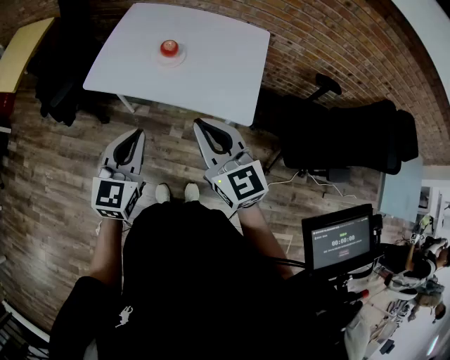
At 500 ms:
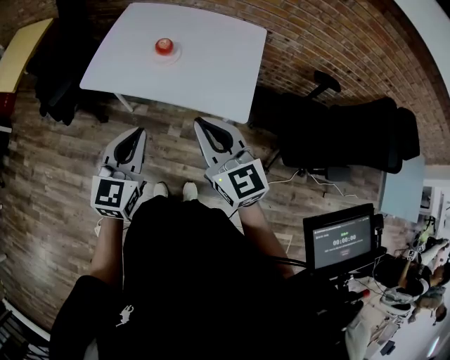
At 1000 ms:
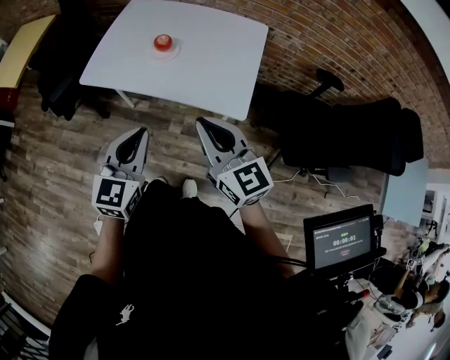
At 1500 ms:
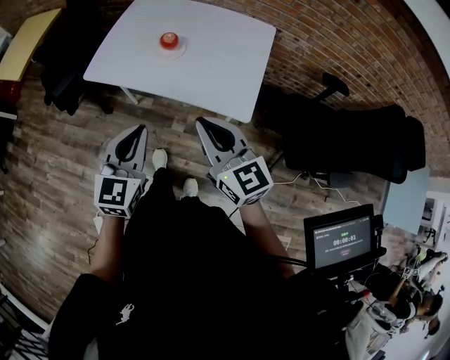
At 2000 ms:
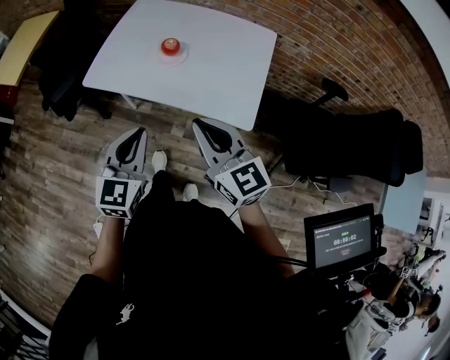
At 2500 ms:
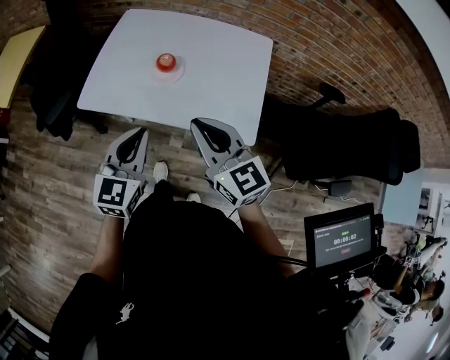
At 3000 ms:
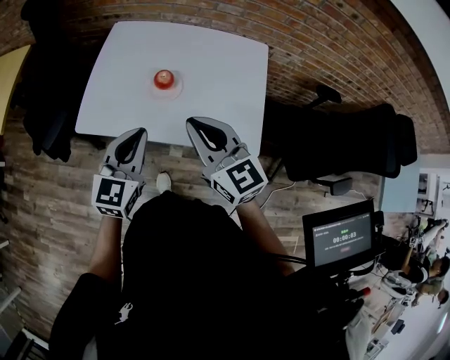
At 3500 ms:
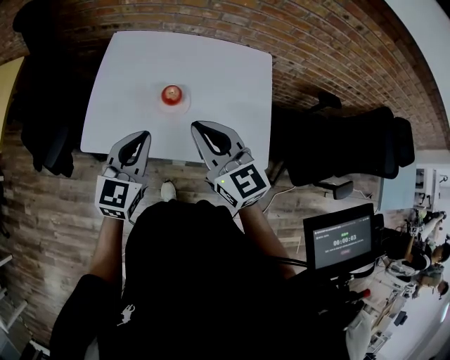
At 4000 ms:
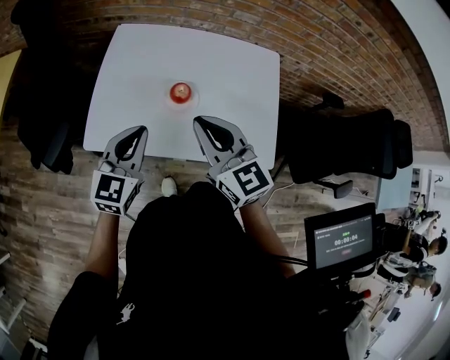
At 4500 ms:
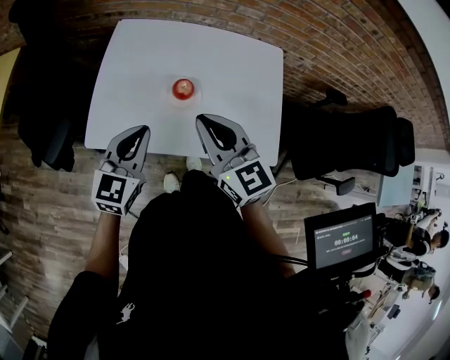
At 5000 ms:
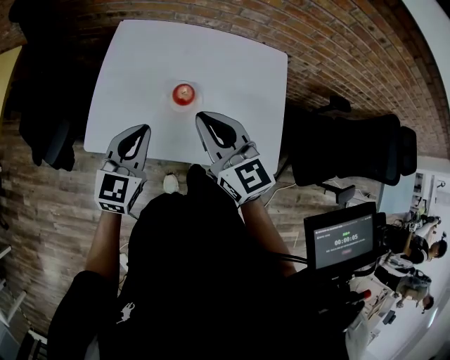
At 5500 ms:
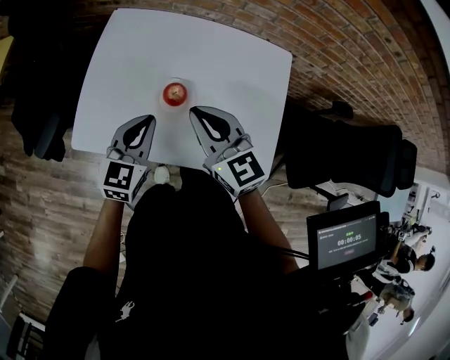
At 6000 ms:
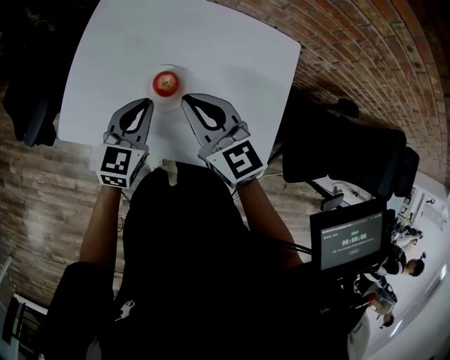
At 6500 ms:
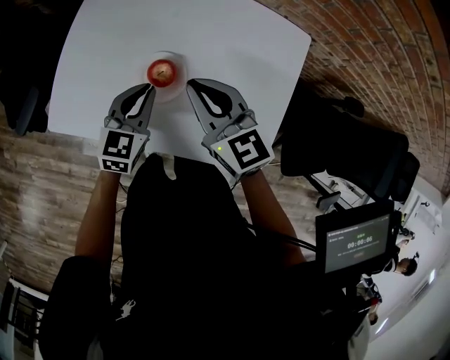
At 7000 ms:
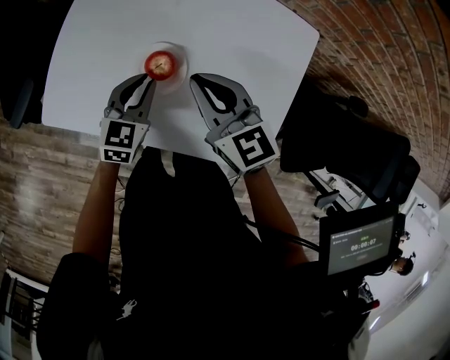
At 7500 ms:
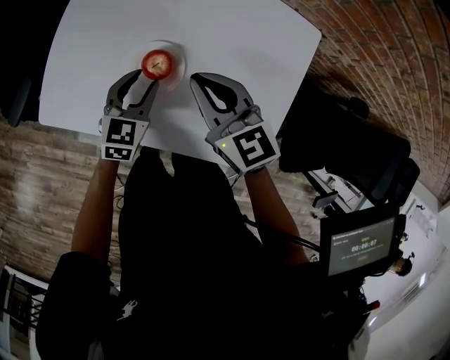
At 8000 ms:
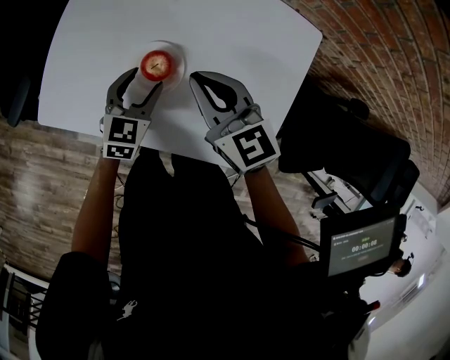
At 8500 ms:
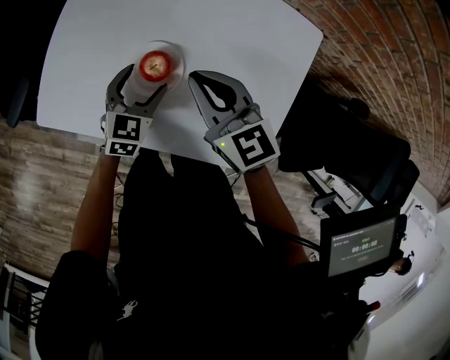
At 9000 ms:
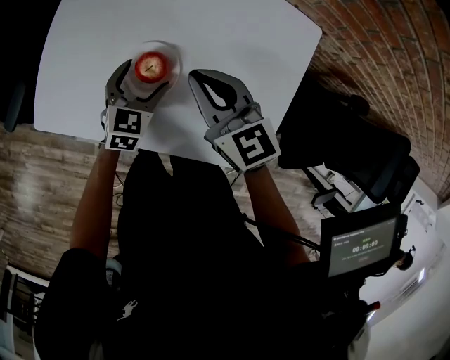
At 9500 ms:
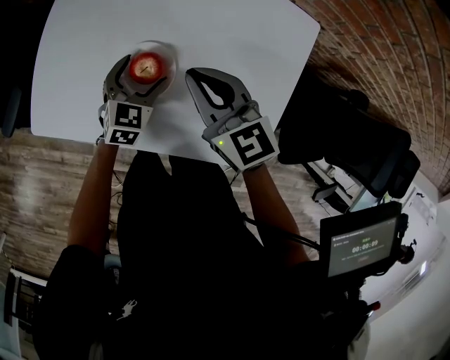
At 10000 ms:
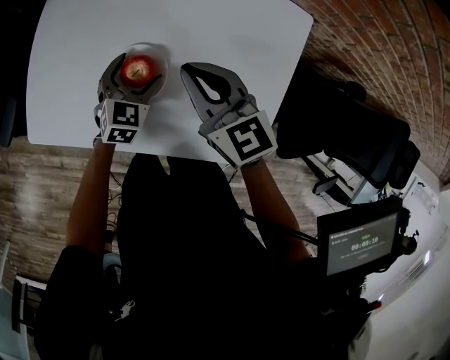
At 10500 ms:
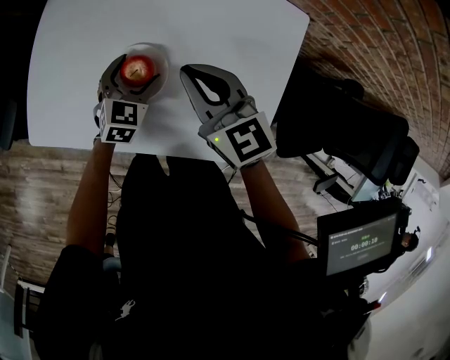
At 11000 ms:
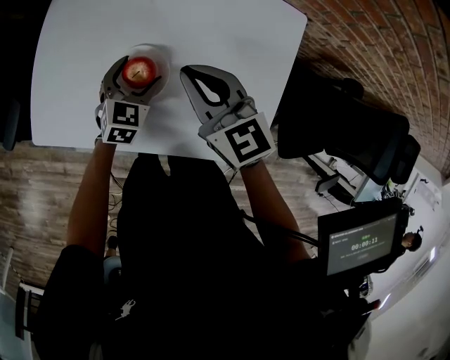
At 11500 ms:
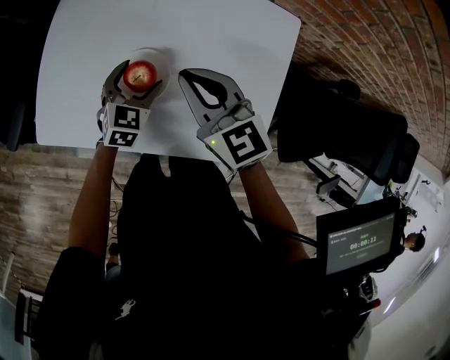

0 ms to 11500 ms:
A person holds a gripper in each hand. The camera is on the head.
0 ms to 2000 ms: The grippers stay close to where they were, moving slightly.
2000 ms to 4000 ms: The grippers both shift forward and to the left by approximately 25 cm.
4000 ms to 6000 ms: The right gripper shifts some 15 cm forward and downward, while the left gripper travels forward, downward and to the right by about 15 cm.
6000 ms to 7500 ms: The right gripper goes about 5 cm downward. The left gripper is displaced downward by about 10 cm.
7500 ms to 9500 ms: The left gripper opens.
9500 ms to 11500 ms: There are only small adjustments of the grippers.

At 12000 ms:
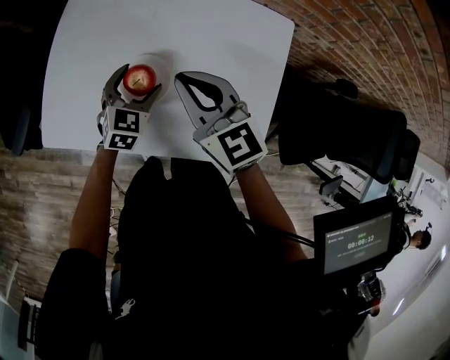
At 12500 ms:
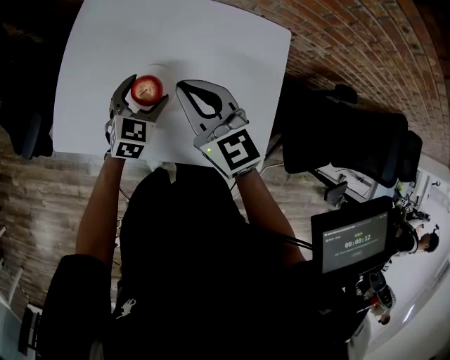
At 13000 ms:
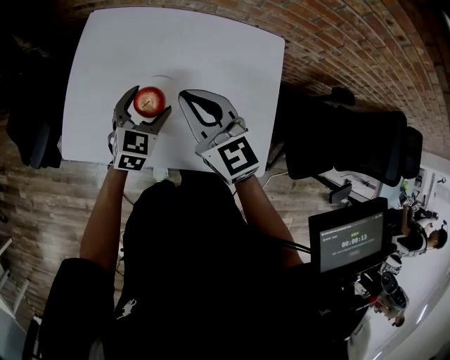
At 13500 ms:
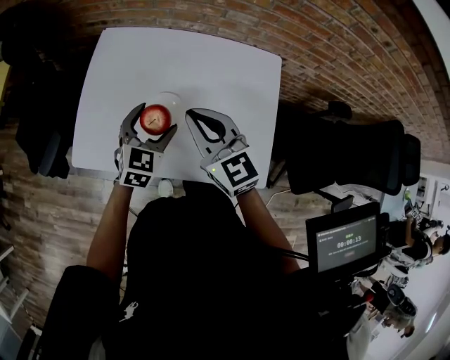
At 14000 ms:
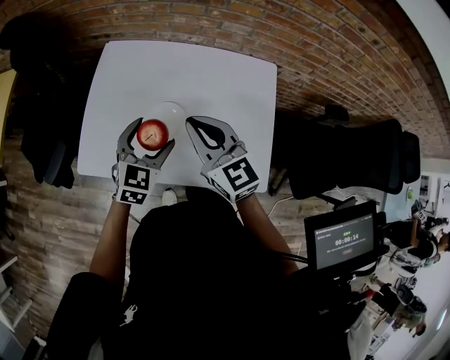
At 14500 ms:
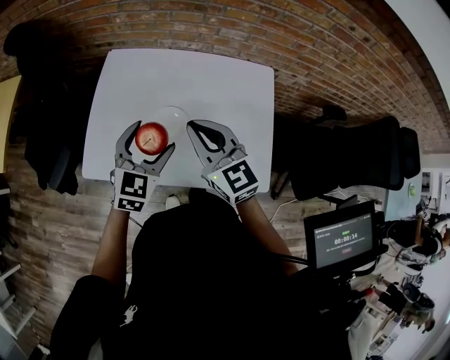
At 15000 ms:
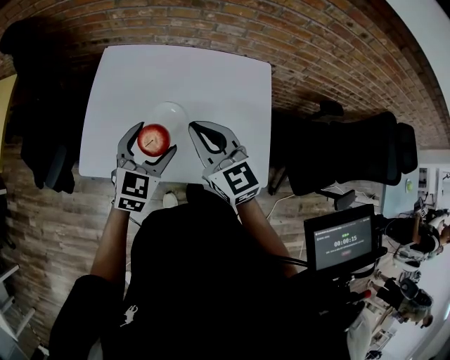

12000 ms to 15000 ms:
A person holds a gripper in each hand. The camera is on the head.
12000 ms to 13500 ms: The left gripper moves upward, about 10 cm; the right gripper ends up approximately 5 cm from where it was.
13500 ms to 15000 ms: The left gripper heads upward and backward, covering approximately 10 cm.

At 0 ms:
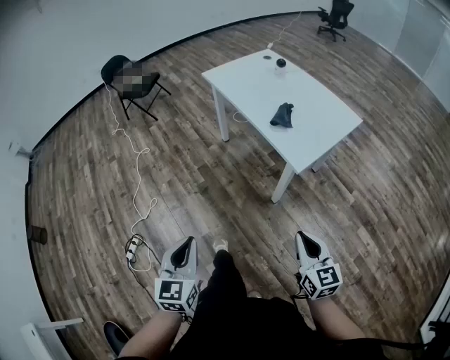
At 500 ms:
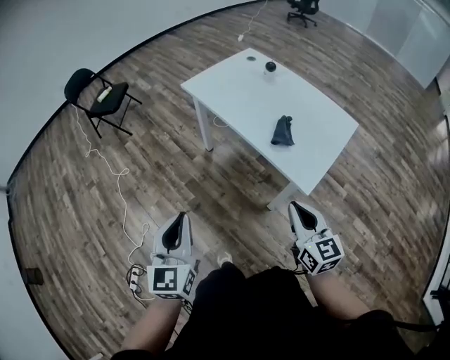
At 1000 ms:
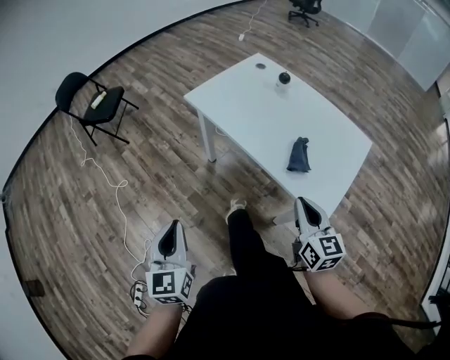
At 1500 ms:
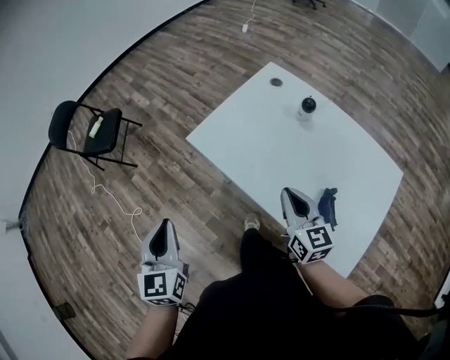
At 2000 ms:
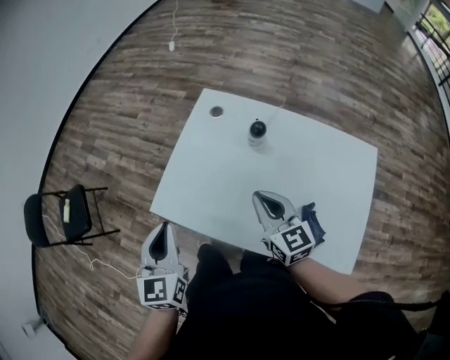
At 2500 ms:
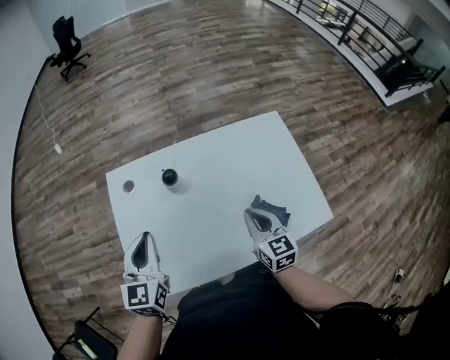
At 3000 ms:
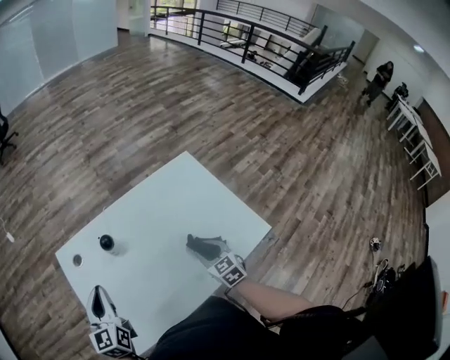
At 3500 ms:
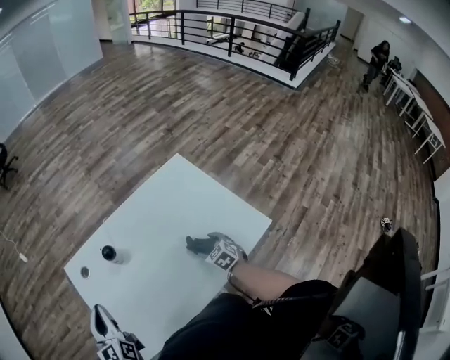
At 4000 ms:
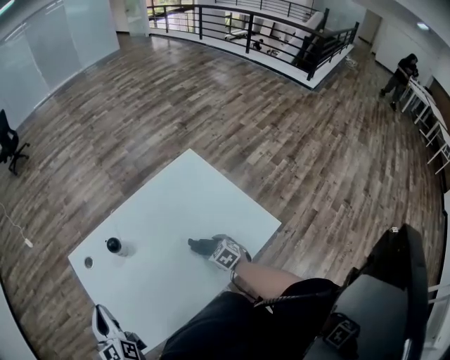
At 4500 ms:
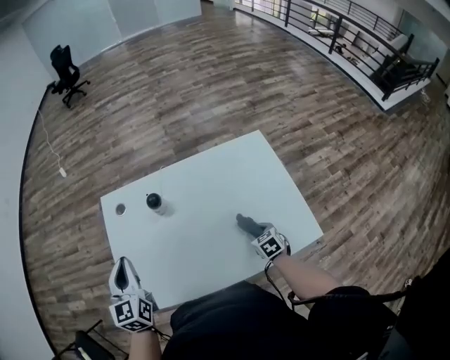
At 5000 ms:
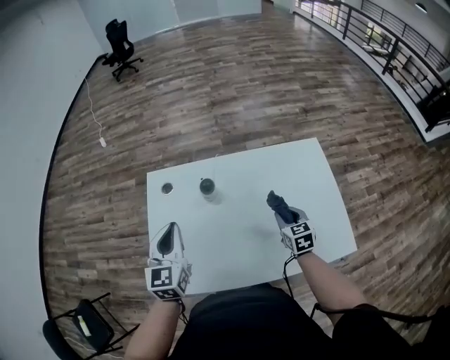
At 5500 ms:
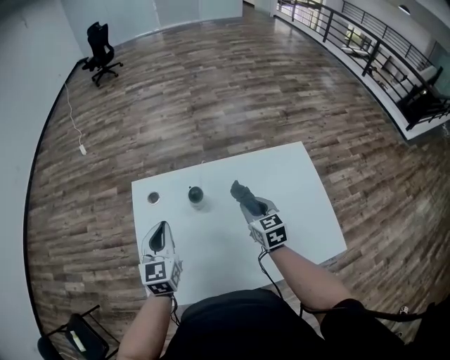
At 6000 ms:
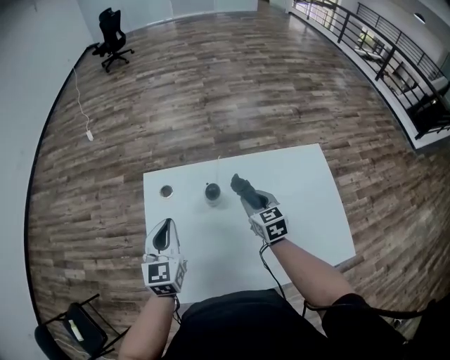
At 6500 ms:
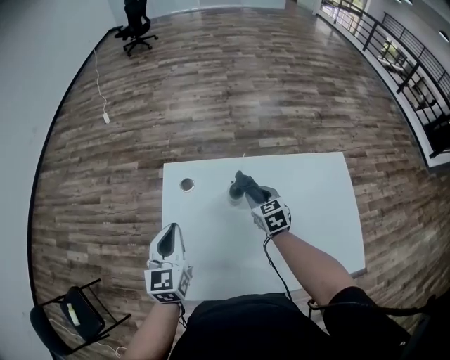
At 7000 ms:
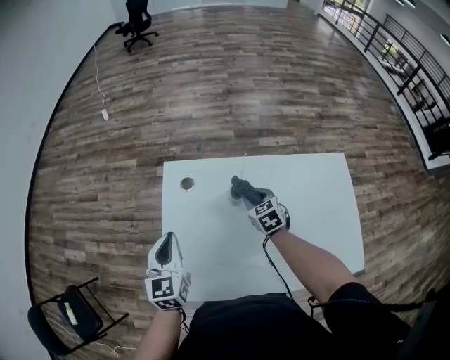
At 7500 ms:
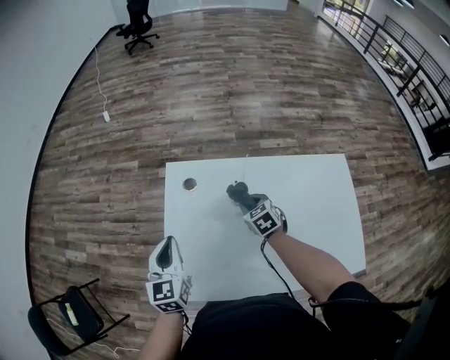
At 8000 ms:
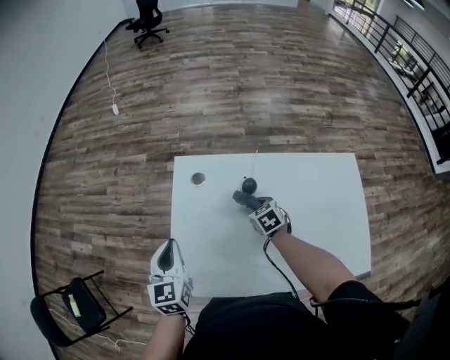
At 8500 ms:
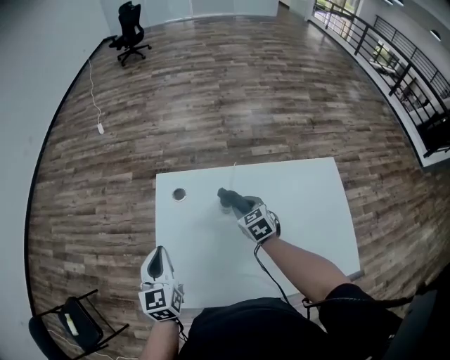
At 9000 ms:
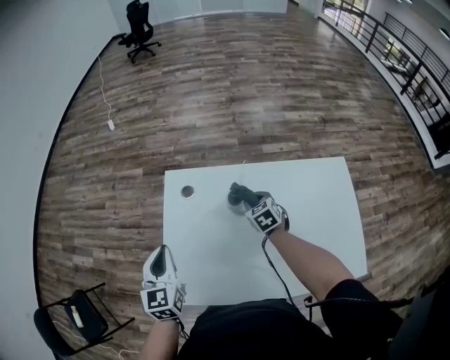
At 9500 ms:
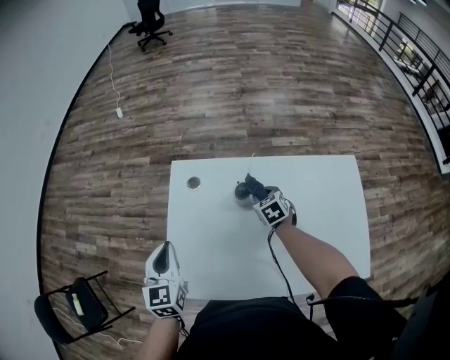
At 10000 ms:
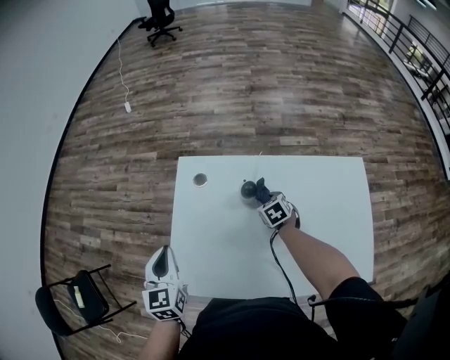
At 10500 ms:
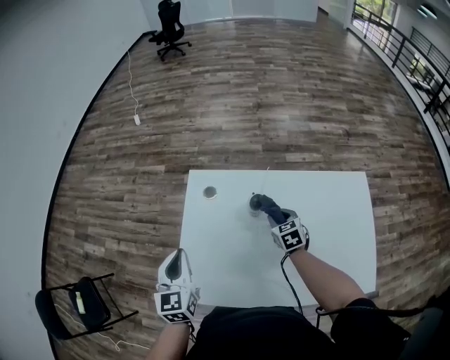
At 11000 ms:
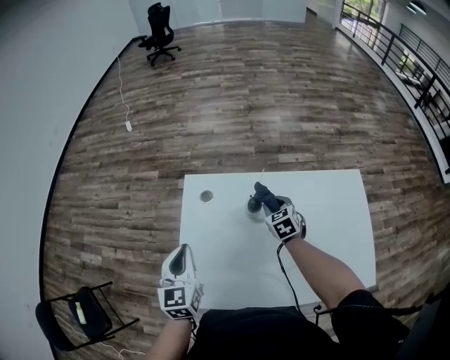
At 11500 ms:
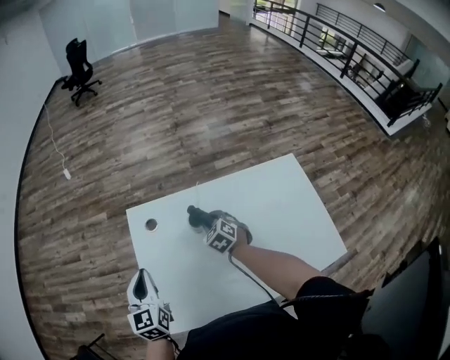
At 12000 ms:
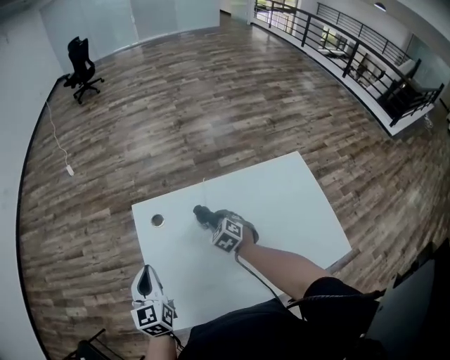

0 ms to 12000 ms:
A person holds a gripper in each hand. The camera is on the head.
0 ms to 2000 ms: Both grippers are carried forward, approximately 70 cm. The right gripper changes its angle by about 20 degrees. Meanwhile the left gripper swivels some 20 degrees.
2000 ms to 4000 ms: The left gripper shifts by approximately 20 cm, and turns by approximately 30 degrees. Meanwhile the right gripper is displaced downward by roughly 25 cm, tilts its fingers approximately 40 degrees downward, and opens its fingers.
4000 ms to 6000 ms: The left gripper heads forward, covering some 5 cm. Meanwhile the right gripper travels upward, forward and to the left by about 25 cm, changes its angle by roughly 20 degrees, and closes.
6000 ms to 8000 ms: The right gripper moves downward and to the left, roughly 15 cm, and swivels about 30 degrees; the left gripper shifts approximately 10 cm to the left and backward.
8000 ms to 10000 ms: The right gripper goes upward and returns, some 5 cm each way.
10000 ms to 12000 ms: The left gripper moves forward, about 5 cm. Meanwhile the right gripper ends up roughly 5 cm from where it was.
